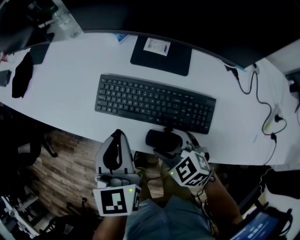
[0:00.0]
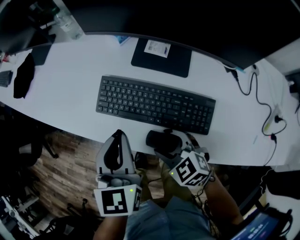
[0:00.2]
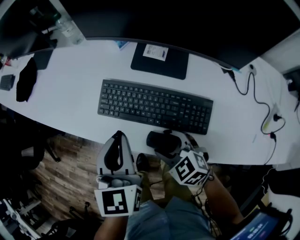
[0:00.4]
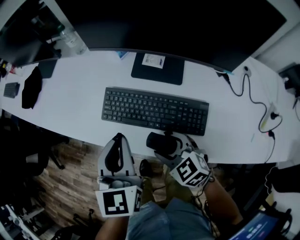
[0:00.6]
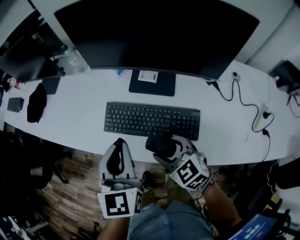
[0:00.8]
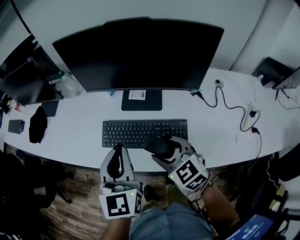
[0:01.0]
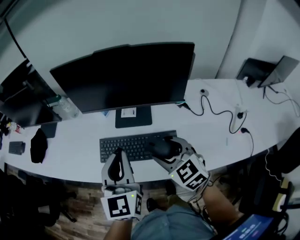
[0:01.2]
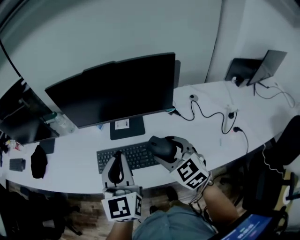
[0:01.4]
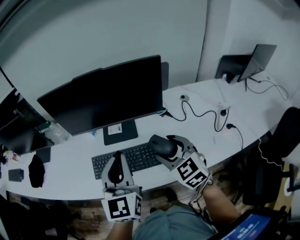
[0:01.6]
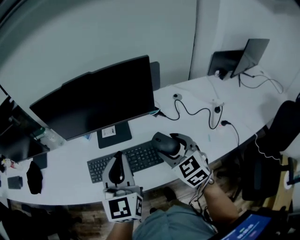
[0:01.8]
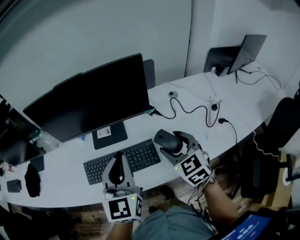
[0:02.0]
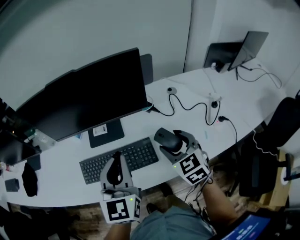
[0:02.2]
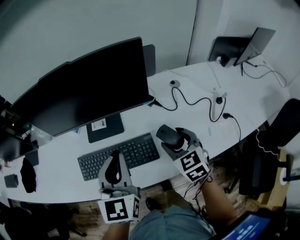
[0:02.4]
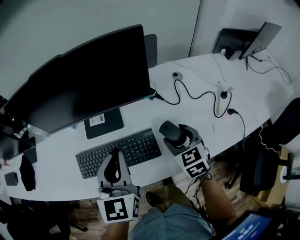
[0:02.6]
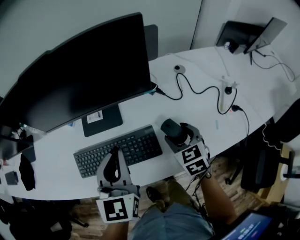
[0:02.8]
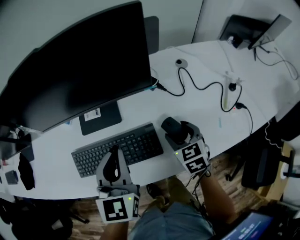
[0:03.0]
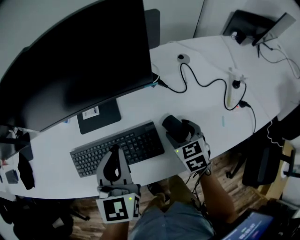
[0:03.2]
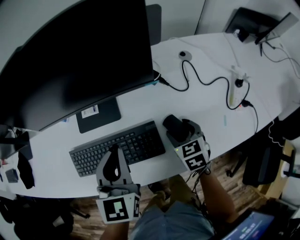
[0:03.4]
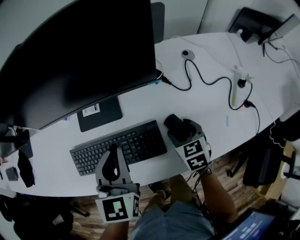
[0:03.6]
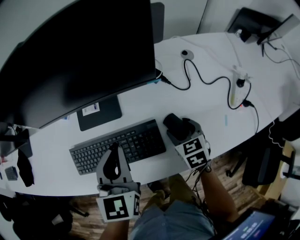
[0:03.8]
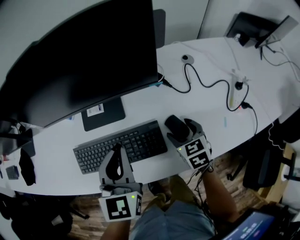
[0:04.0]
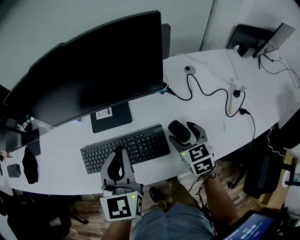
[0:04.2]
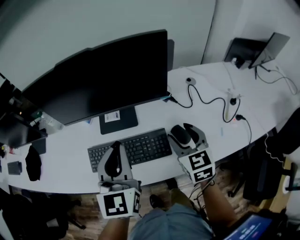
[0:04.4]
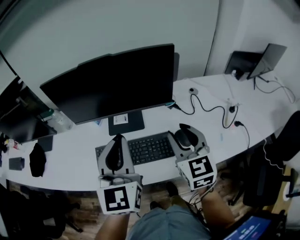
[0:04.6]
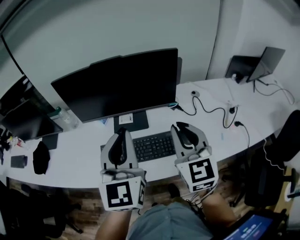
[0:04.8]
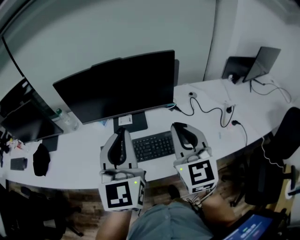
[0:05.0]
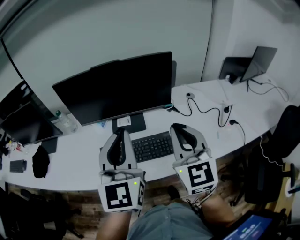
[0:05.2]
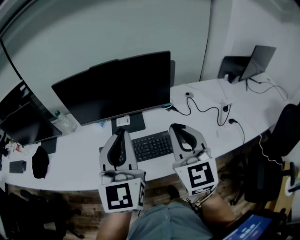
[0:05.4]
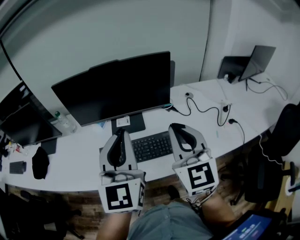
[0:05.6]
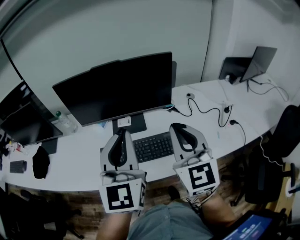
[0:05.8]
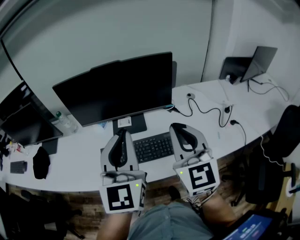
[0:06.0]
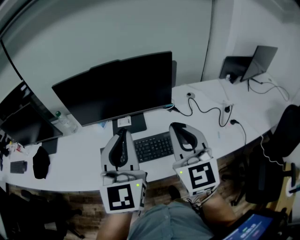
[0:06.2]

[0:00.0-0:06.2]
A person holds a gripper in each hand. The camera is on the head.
0:00.0 to 0:01.6: The two grippers go about 20 cm upward. The left gripper rotates some 30 degrees; the right gripper rotates some 40 degrees.
0:01.6 to 0:03.2: The left gripper shifts some 15 cm downward, forward and to the right; the right gripper moves downward and to the right, roughly 20 cm, and turns by approximately 30 degrees.
0:03.2 to 0:04.6: The left gripper is displaced upward by roughly 15 cm. Meanwhile the right gripper is displaced upward by approximately 25 cm, and points its fingers approximately 30 degrees further upward.
0:04.6 to 0:06.2: The right gripper is displaced upward and backward by approximately 10 cm, and closes. The left gripper shifts approximately 5 cm upward.

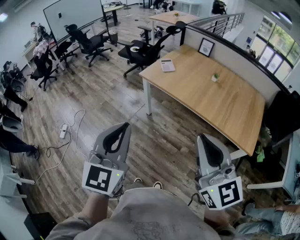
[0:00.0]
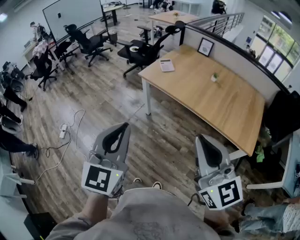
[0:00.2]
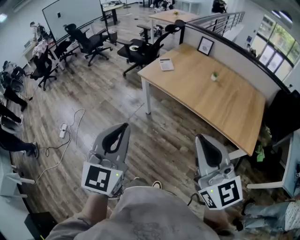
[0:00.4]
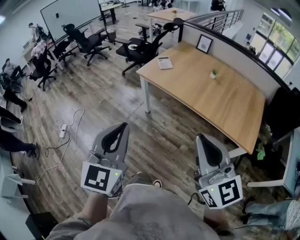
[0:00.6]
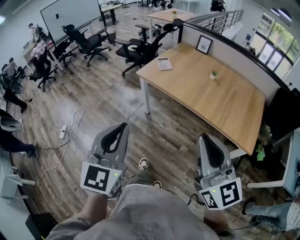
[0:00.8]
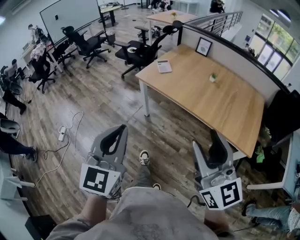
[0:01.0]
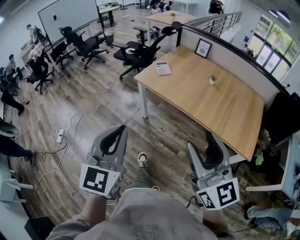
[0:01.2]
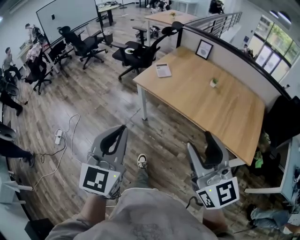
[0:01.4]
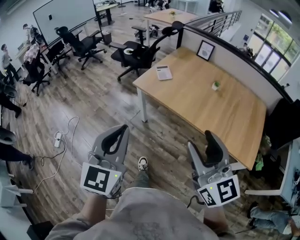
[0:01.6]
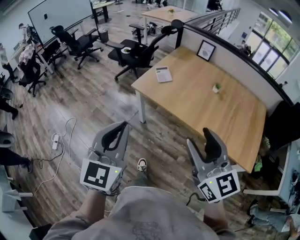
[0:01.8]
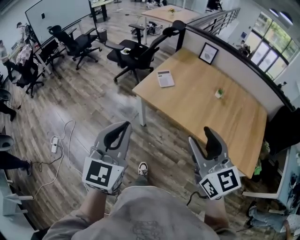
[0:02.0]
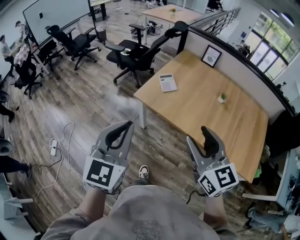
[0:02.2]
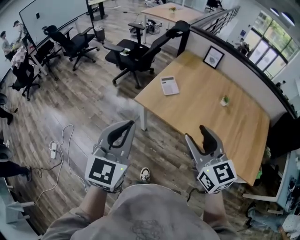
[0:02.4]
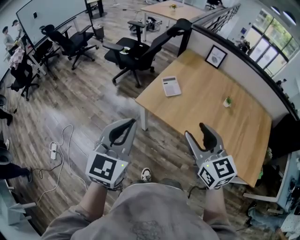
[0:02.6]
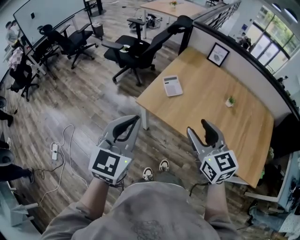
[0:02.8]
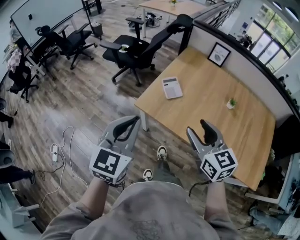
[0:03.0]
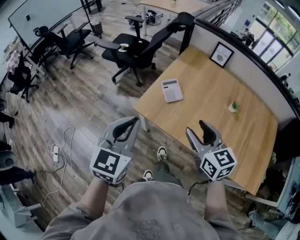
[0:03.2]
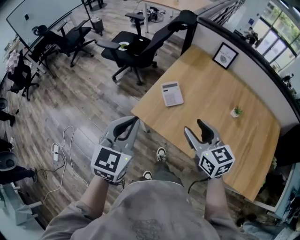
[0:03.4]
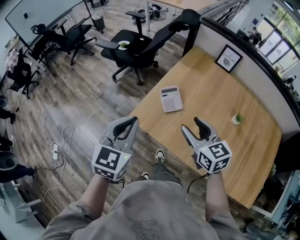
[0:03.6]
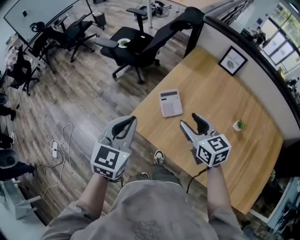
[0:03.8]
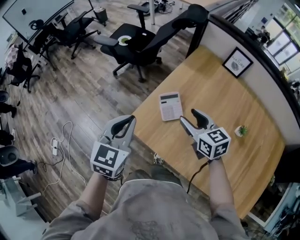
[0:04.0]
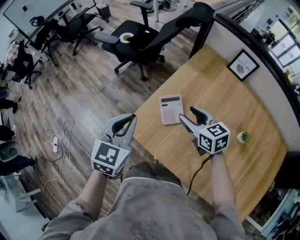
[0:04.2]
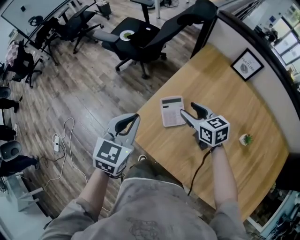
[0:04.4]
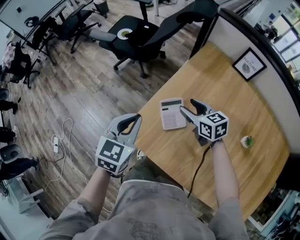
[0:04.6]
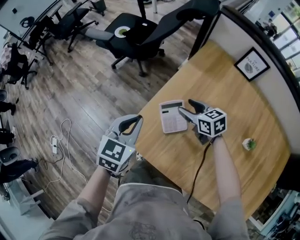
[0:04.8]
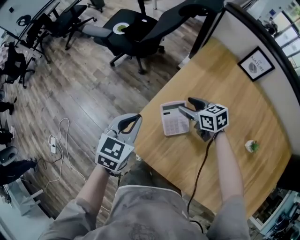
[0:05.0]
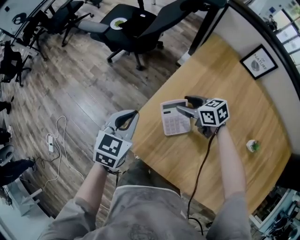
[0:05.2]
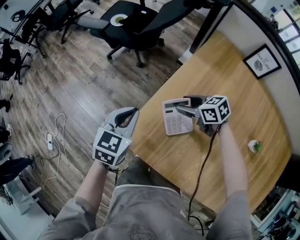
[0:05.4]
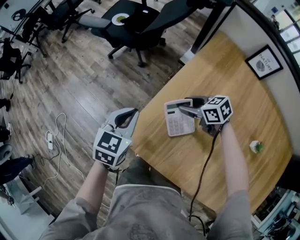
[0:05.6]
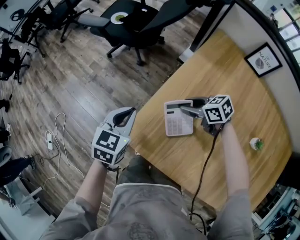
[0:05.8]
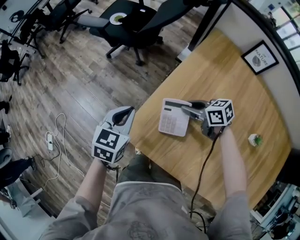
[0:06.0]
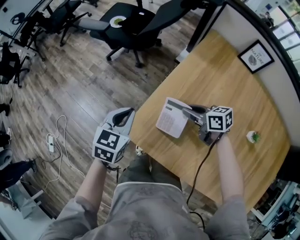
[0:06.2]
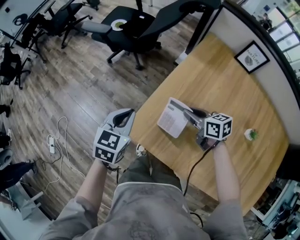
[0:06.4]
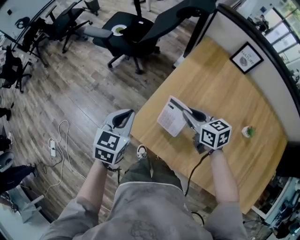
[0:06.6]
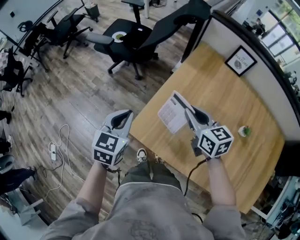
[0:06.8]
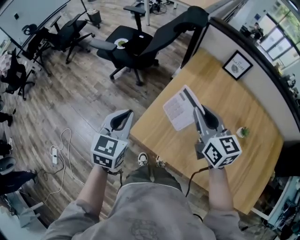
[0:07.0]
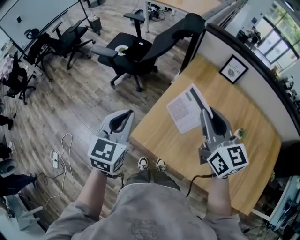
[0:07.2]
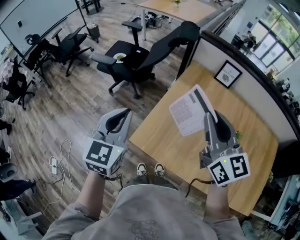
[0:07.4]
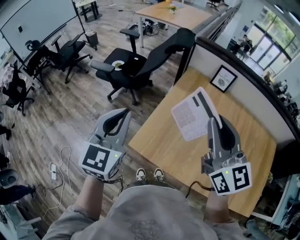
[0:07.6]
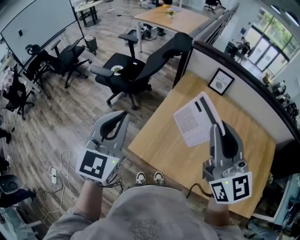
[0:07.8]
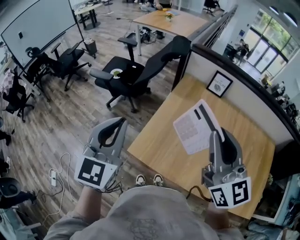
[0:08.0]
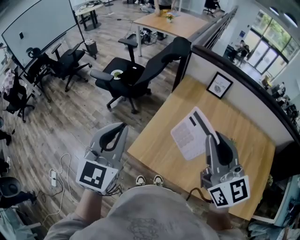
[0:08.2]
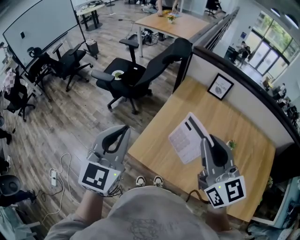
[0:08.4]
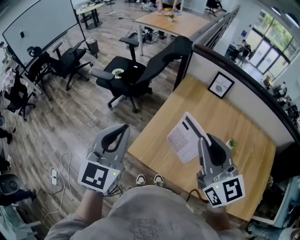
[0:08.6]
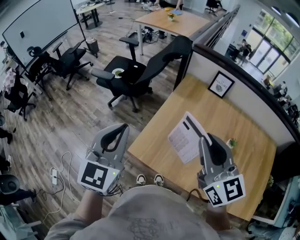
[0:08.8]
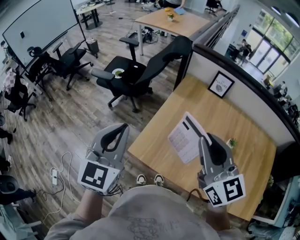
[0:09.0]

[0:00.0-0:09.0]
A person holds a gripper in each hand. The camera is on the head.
0:00.0 to 0:01.6: Both grippers travel together forward, approximately 15 cm. The right gripper opens.
0:01.6 to 0:03.0: The two grippers go approximately 35 cm forward. The right gripper rotates about 20 degrees.
0:03.0 to 0:04.4: The two grippers go some 35 cm forward and downward. The right gripper turns by about 30 degrees.
0:04.4 to 0:06.0: The right gripper heads downward, covering some 15 cm, turns by approximately 30 degrees, and closes up. The left gripper goes approximately 15 cm downward and forward.
0:06.0 to 0:07.6: Both grippers move upward, some 40 cm. The right gripper tips its fingers upward by some 40 degrees, while the left gripper changes its angle by approximately 30 degrees.
0:07.6 to 0:09.0: The grippers stay close to where they were, moving slightly.

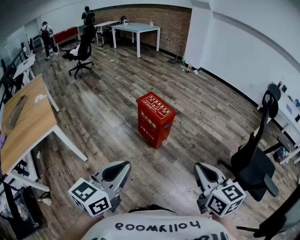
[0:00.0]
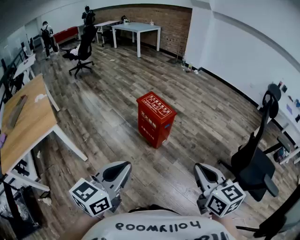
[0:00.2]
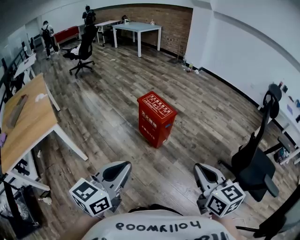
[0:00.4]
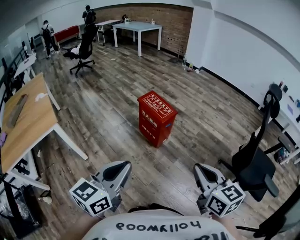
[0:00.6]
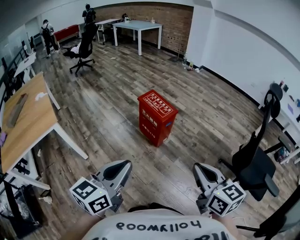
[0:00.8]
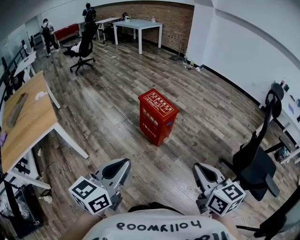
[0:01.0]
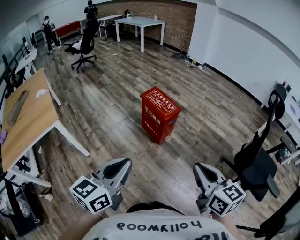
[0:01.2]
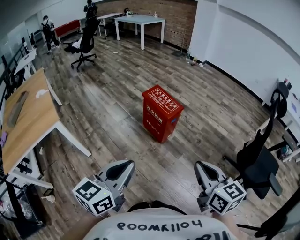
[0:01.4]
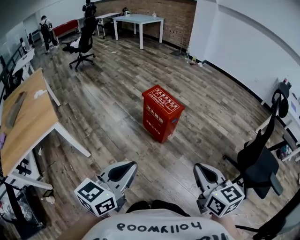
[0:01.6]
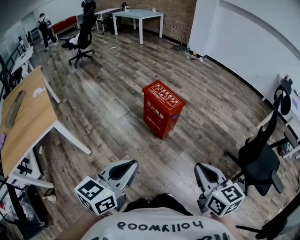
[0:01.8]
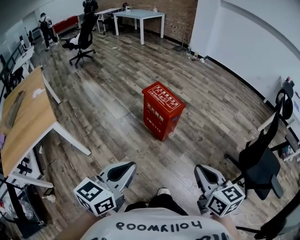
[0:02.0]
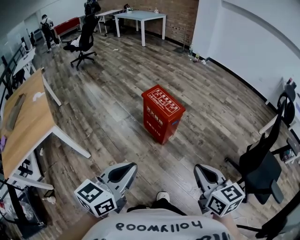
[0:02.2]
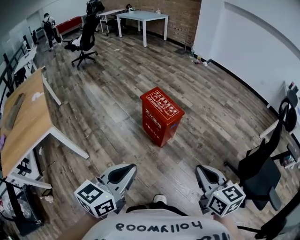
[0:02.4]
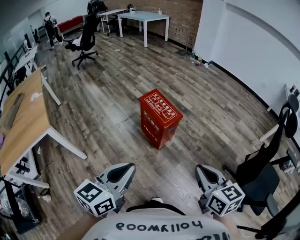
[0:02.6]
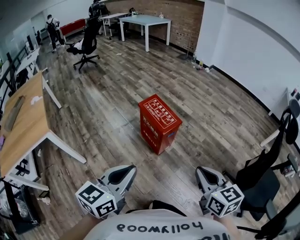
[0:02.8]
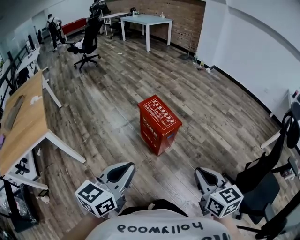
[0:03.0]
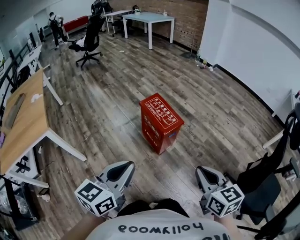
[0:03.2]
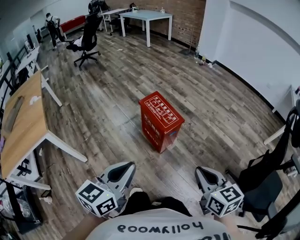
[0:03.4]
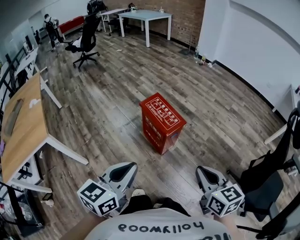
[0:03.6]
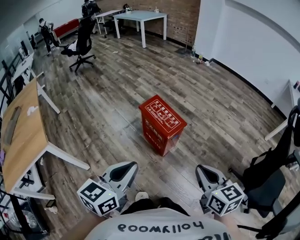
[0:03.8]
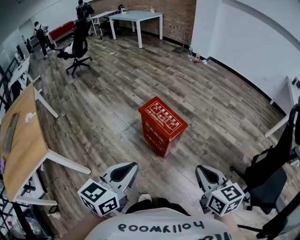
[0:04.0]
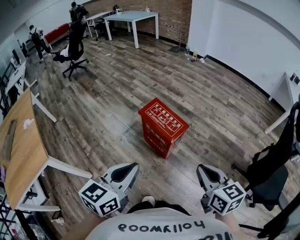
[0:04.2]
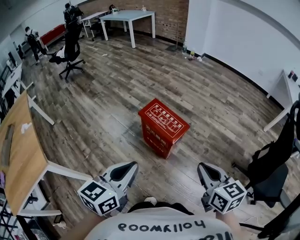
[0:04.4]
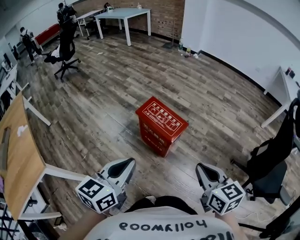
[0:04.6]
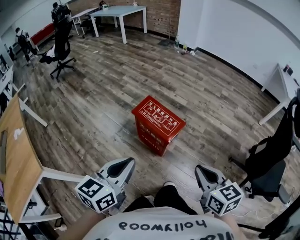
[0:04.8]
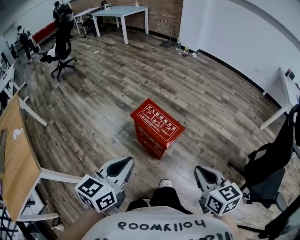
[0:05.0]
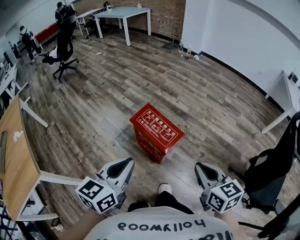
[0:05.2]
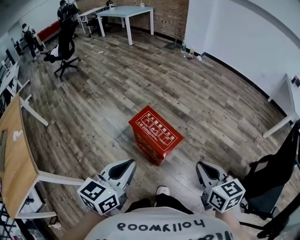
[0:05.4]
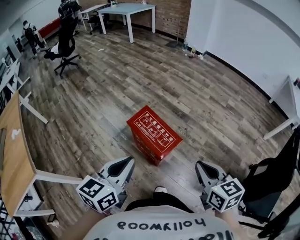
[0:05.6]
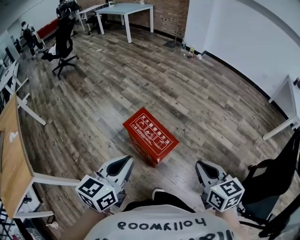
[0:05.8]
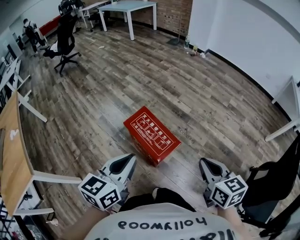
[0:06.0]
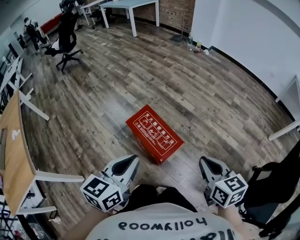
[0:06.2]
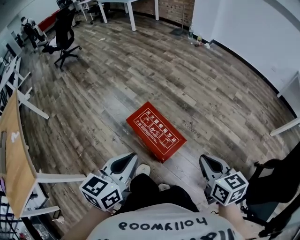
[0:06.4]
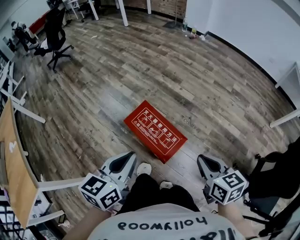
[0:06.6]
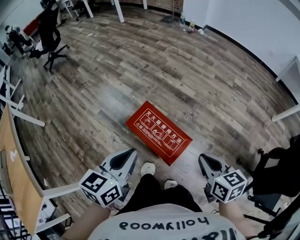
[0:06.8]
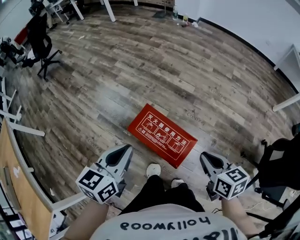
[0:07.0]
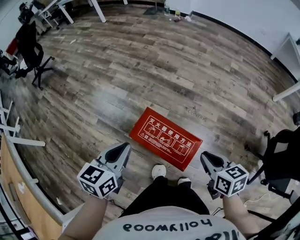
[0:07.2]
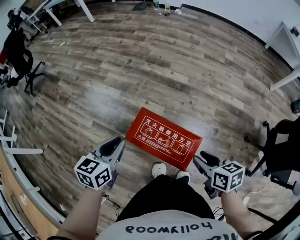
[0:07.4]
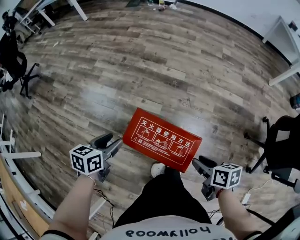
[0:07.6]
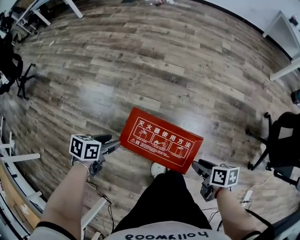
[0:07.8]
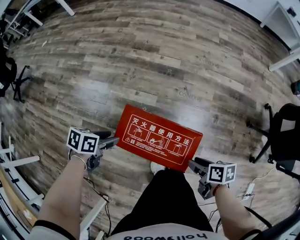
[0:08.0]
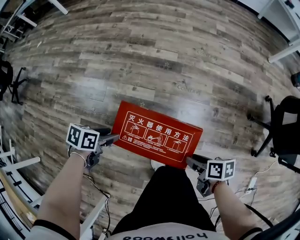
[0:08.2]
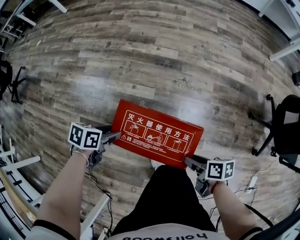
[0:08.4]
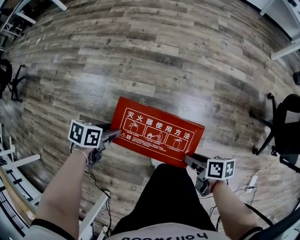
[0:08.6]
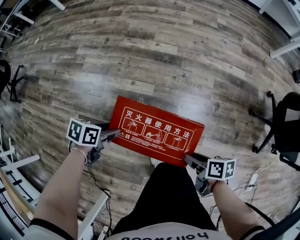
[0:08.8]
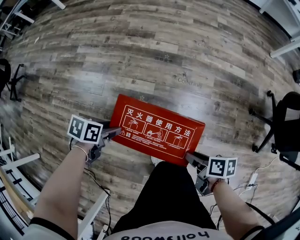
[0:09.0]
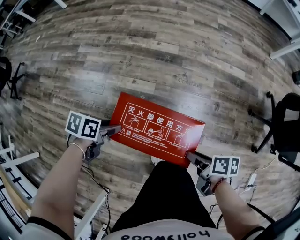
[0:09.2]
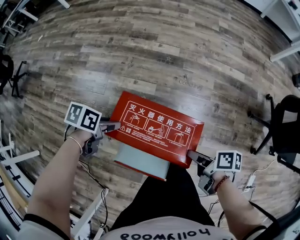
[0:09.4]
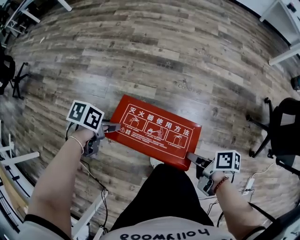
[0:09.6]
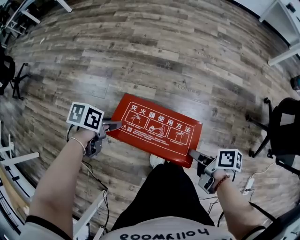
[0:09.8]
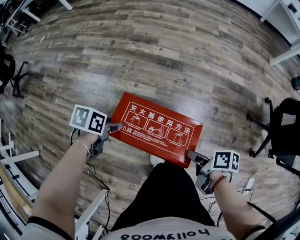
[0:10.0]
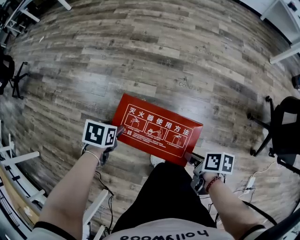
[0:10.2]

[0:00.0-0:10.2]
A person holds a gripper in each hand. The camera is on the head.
0:00.0 to 0:01.4: The right gripper shifts by some 5 cm.
0:01.4 to 0:03.0: Both grippers move forward and to the right, roughly 15 cm.
0:03.0 to 0:04.4: The two grippers go approximately 15 cm forward and to the left.
0:04.4 to 0:05.8: The right gripper is displaced forward and to the right by approximately 20 cm, while the left gripper goes roughly 20 cm forward.
0:05.8 to 0:07.2: Both grippers travel together forward, downward and to the left, about 25 cm. The right gripper rotates roughly 20 degrees.
0:07.2 to 0:08.8: Both grippers travel together downward, roughly 25 cm. The right gripper rolls clockwise, seen from behind, by some 40 degrees, and opens up, while the left gripper rotates roughly 50 degrees, and opens.
0:08.8 to 0:10.2: The left gripper swivels approximately 20 degrees.
